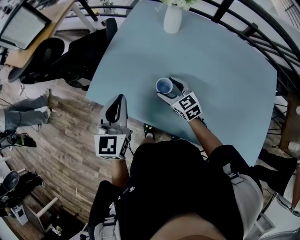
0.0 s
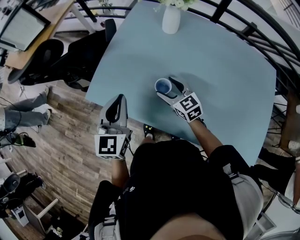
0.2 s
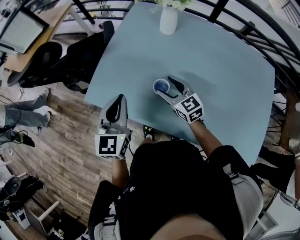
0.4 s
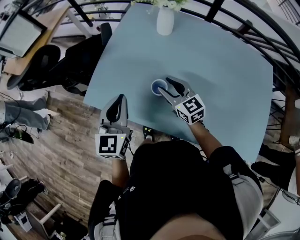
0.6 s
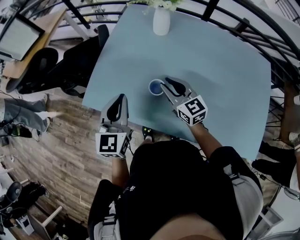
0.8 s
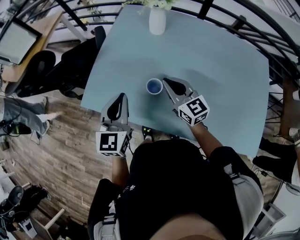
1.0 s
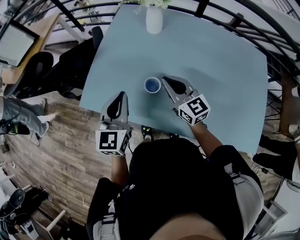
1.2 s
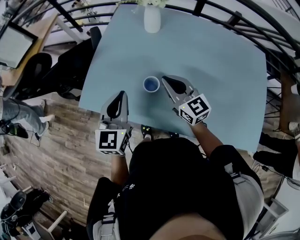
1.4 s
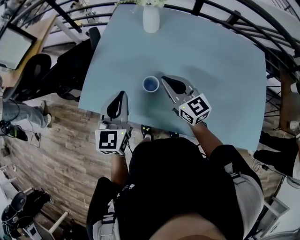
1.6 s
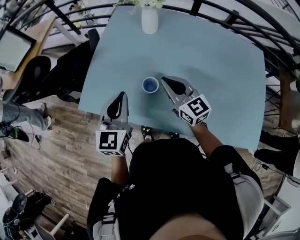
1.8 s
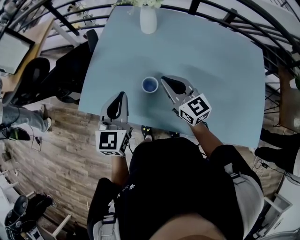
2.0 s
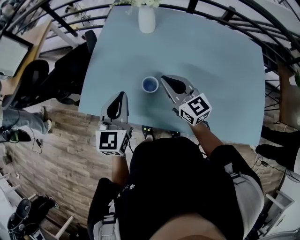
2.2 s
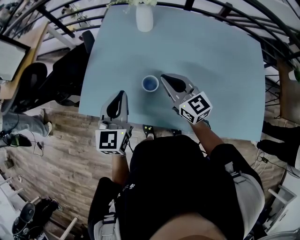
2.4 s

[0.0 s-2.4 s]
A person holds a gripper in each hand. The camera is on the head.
0.0 to 1.2 s: The right gripper travels upward by about 10 cm, changes its angle by some 20 degrees, and closes.
1.2 to 2.4 s: There are only small adjustments of the grippers.

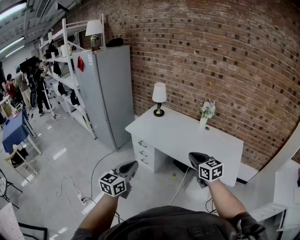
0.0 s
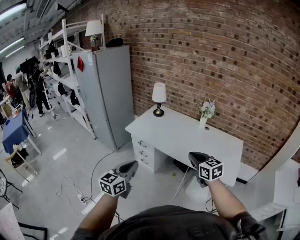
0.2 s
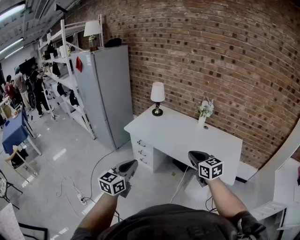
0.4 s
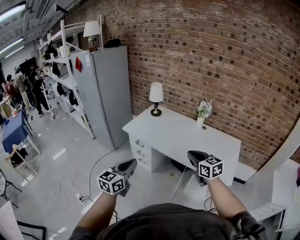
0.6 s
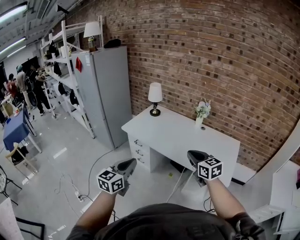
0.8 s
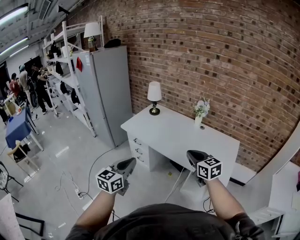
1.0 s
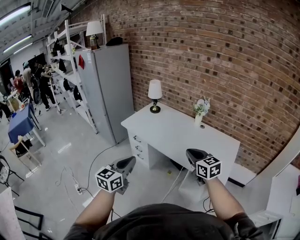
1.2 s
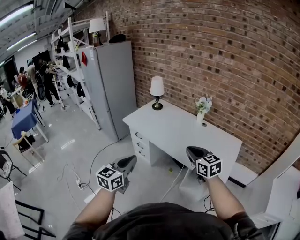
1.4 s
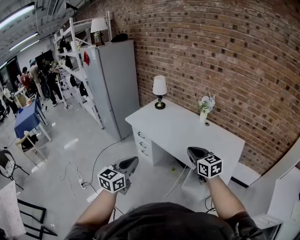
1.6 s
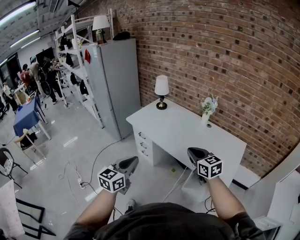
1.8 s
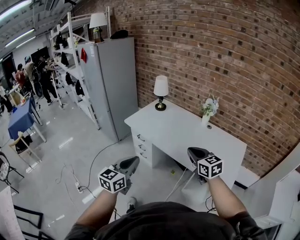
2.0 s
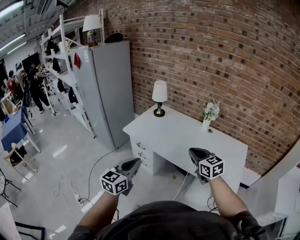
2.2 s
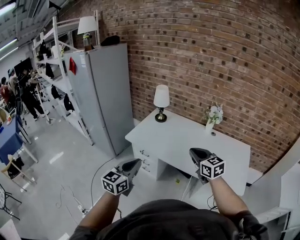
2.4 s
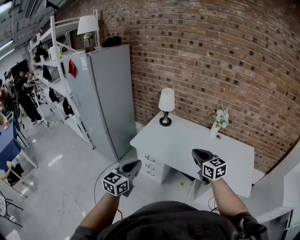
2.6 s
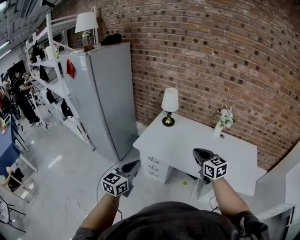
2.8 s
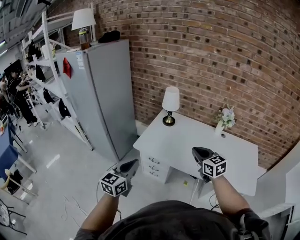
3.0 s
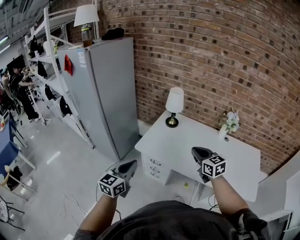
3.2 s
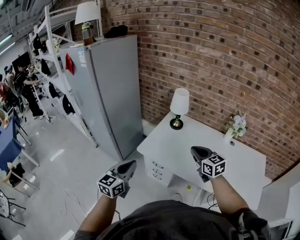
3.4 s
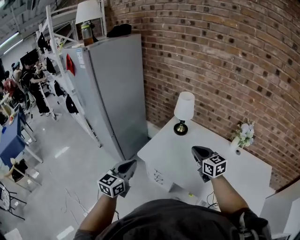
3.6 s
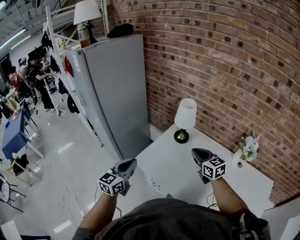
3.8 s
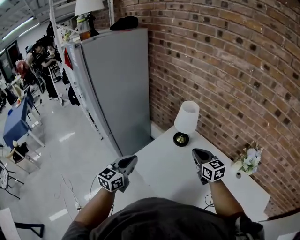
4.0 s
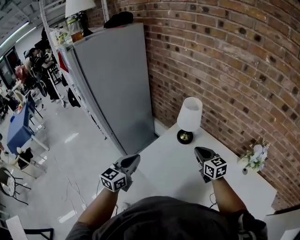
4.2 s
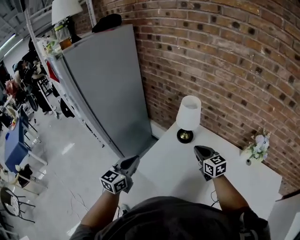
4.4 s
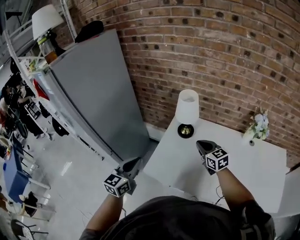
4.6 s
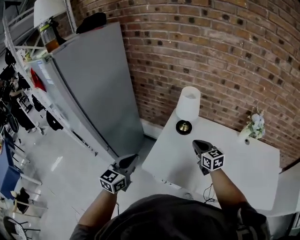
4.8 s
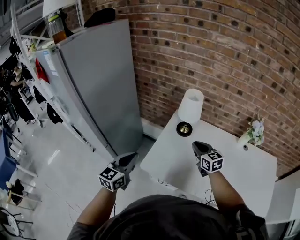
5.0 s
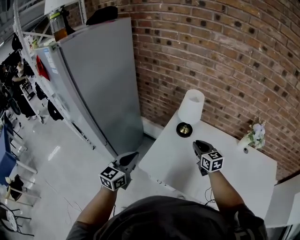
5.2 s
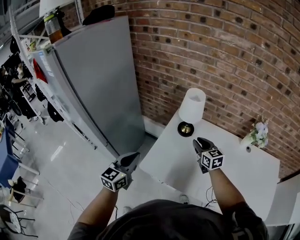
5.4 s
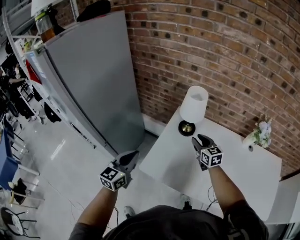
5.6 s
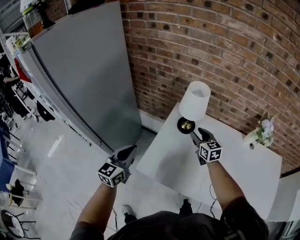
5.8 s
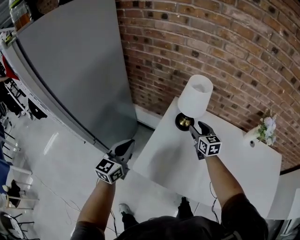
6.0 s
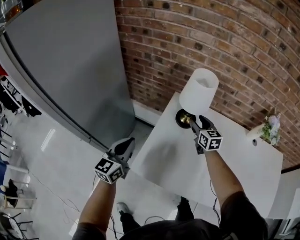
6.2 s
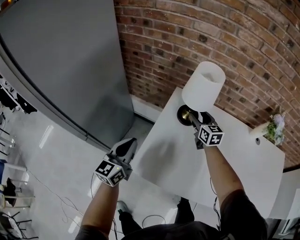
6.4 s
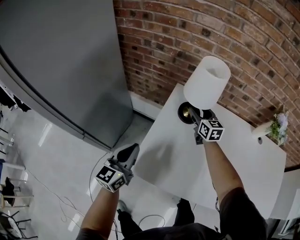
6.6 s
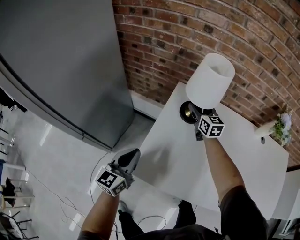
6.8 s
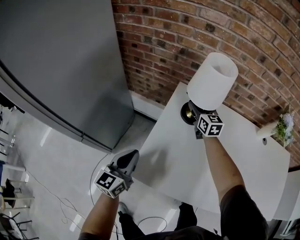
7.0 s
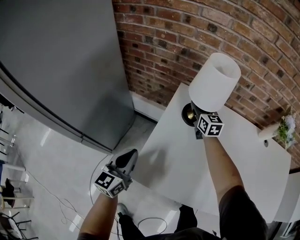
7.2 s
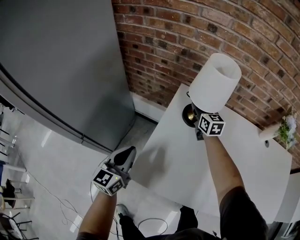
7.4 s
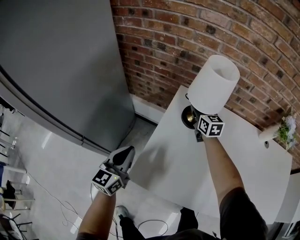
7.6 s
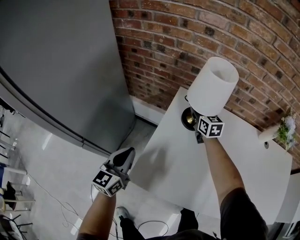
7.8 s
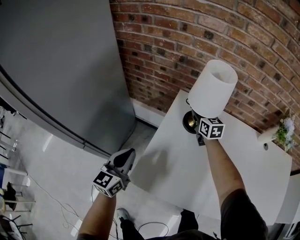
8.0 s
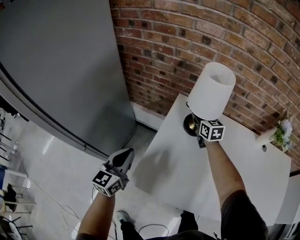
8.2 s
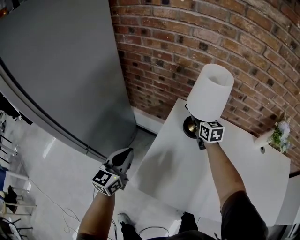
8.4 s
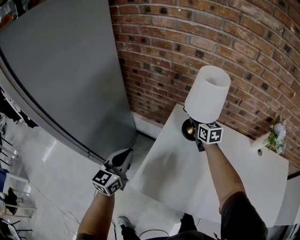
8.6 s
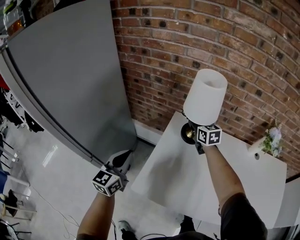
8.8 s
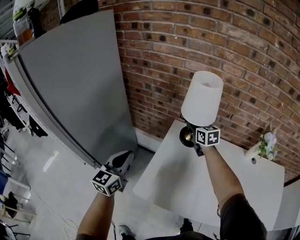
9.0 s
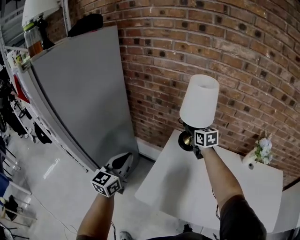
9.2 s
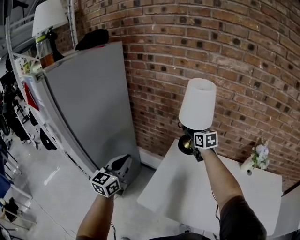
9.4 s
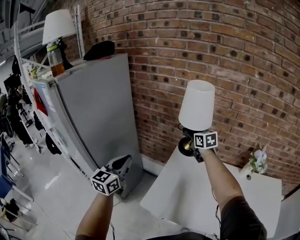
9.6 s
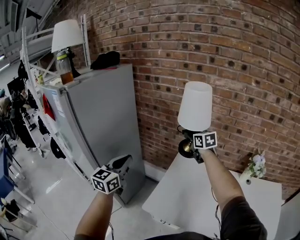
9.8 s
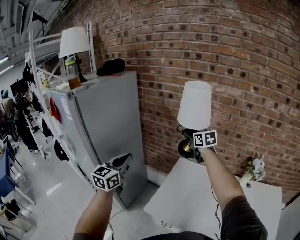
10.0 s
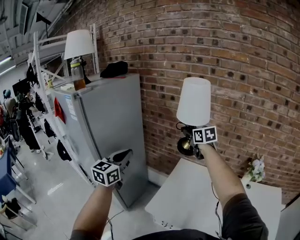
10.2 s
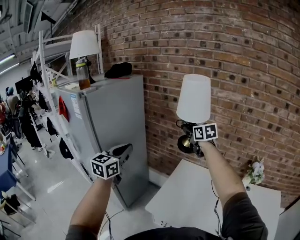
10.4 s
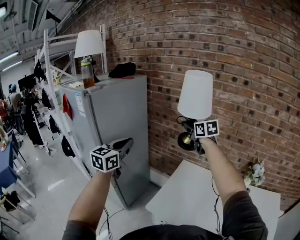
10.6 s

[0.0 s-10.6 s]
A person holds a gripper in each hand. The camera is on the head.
0.0 to 1.6 s: The grippers both shift to the right by roughly 15 cm.
1.6 to 3.0 s: The grippers both shift to the left and forward by roughly 40 cm.
3.0 to 4.6 s: Both grippers travel together forward, roughly 35 cm.
4.6 to 6.0 s: The grippers both shift forward and downward by about 15 cm. The right gripper opens its fingers.
6.0 to 7.6 s: The left gripper goes approximately 15 cm downward; the right gripper shifts some 15 cm forward and downward, and closes up.
7.6 to 9.0 s: The grippers both shift upward by about 15 cm.
9.0 to 10.6 s: The two grippers go roughly 30 cm upward.

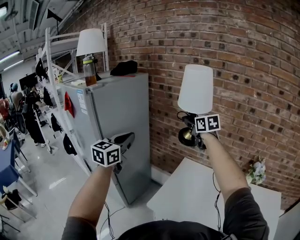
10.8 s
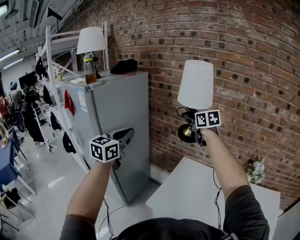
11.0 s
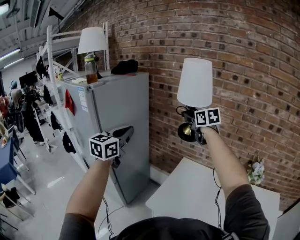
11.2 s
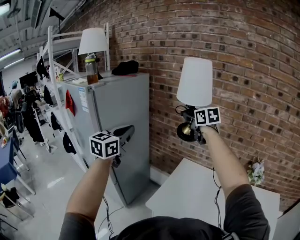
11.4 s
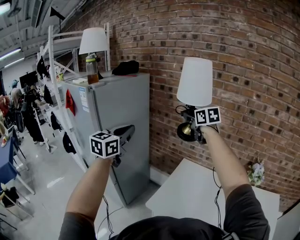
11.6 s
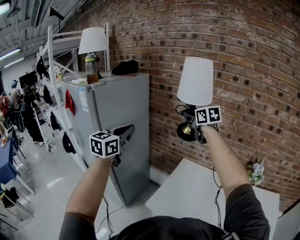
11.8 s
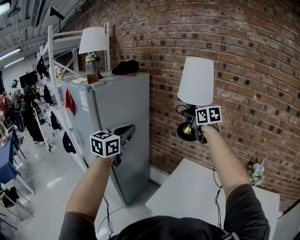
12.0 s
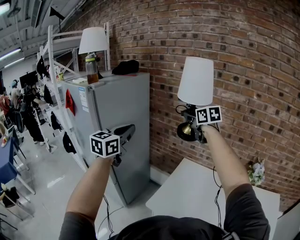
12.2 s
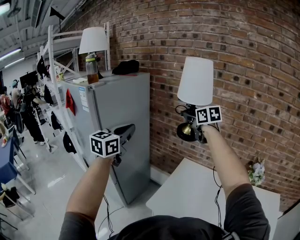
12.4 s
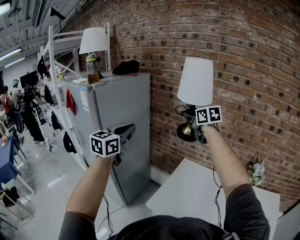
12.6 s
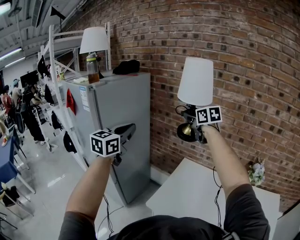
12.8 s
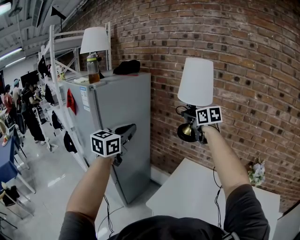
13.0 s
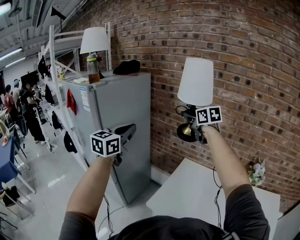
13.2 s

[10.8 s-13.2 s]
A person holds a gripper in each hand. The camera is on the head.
10.8 to 12.0 s: The grippers stay close to where they were, moving slightly.
12.0 to 13.2 s: Both grippers stay about where they are.

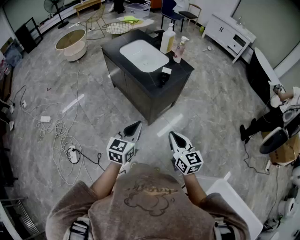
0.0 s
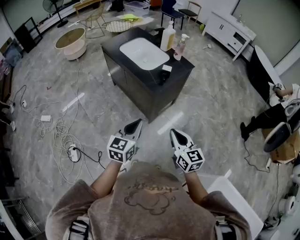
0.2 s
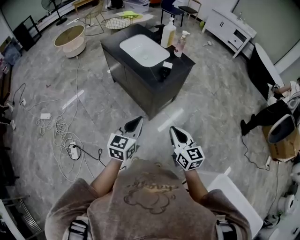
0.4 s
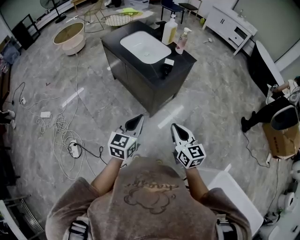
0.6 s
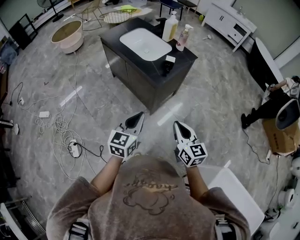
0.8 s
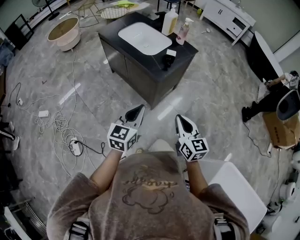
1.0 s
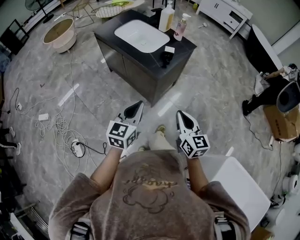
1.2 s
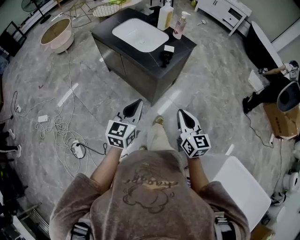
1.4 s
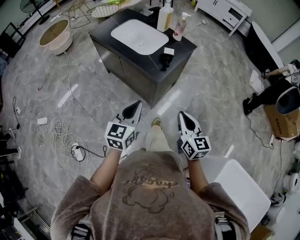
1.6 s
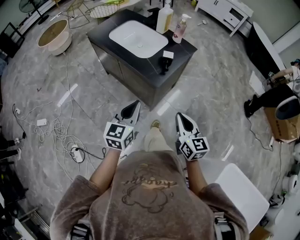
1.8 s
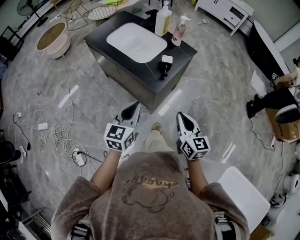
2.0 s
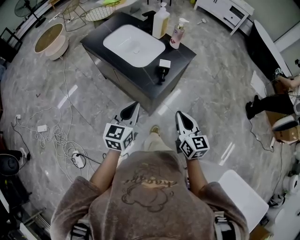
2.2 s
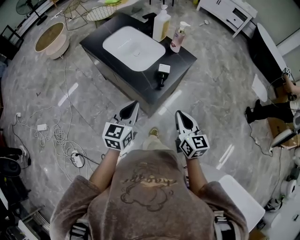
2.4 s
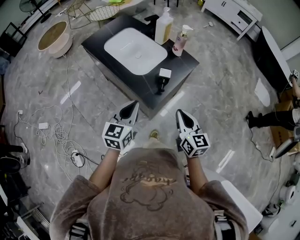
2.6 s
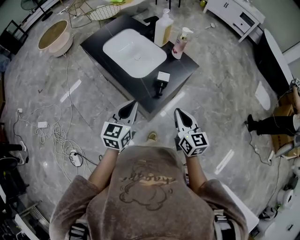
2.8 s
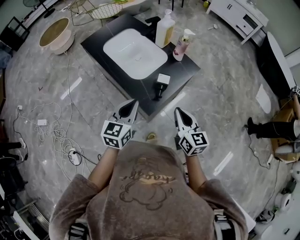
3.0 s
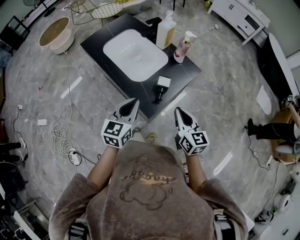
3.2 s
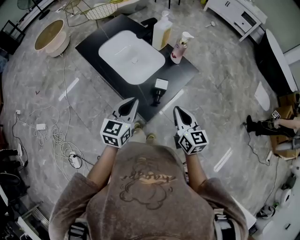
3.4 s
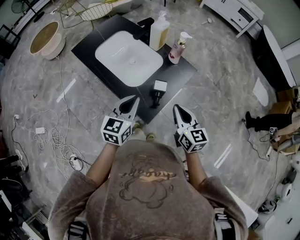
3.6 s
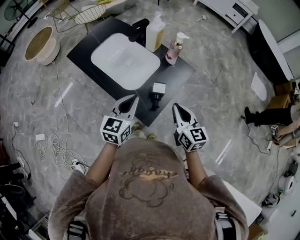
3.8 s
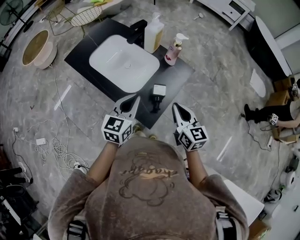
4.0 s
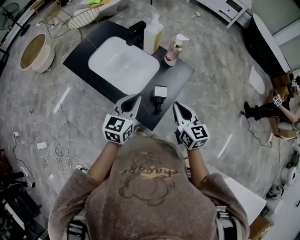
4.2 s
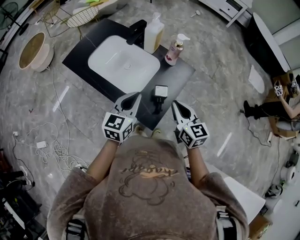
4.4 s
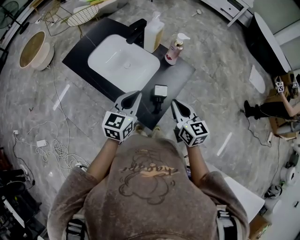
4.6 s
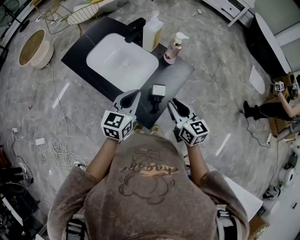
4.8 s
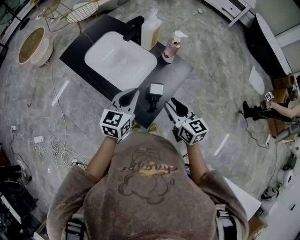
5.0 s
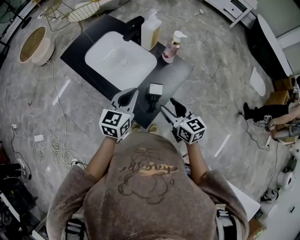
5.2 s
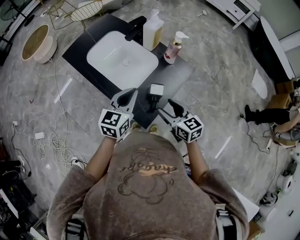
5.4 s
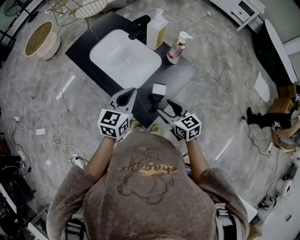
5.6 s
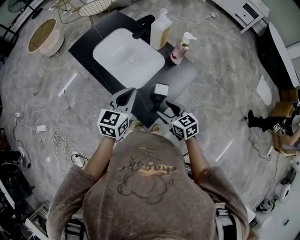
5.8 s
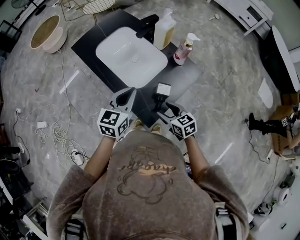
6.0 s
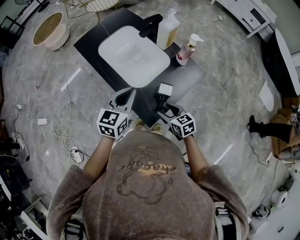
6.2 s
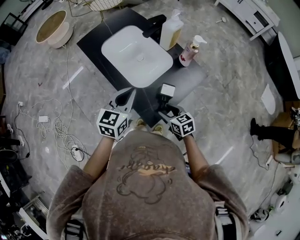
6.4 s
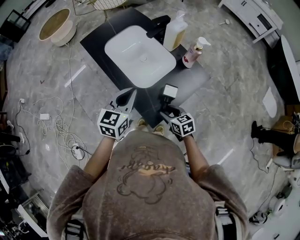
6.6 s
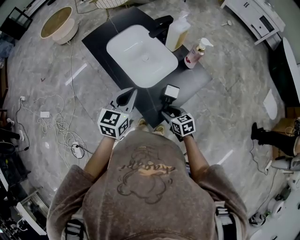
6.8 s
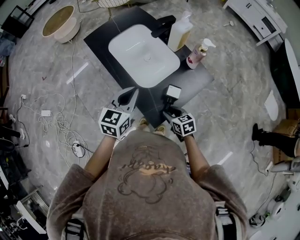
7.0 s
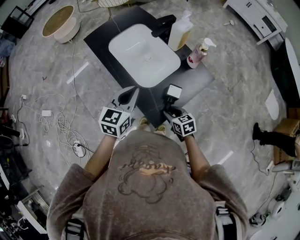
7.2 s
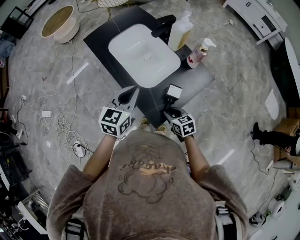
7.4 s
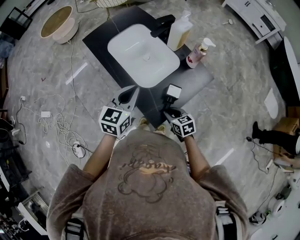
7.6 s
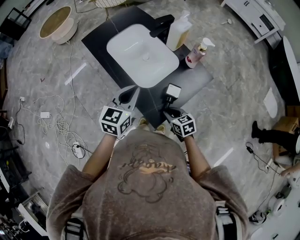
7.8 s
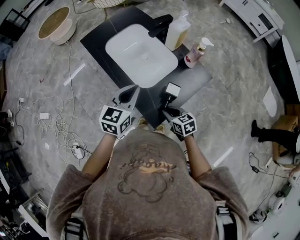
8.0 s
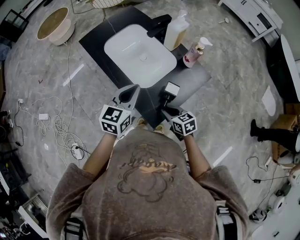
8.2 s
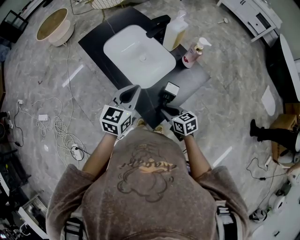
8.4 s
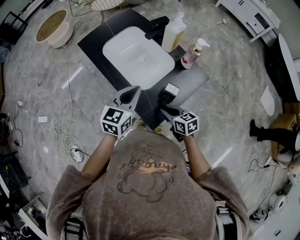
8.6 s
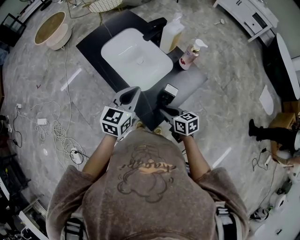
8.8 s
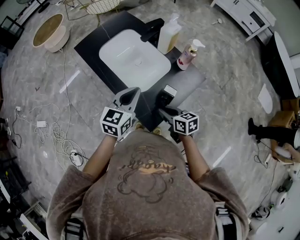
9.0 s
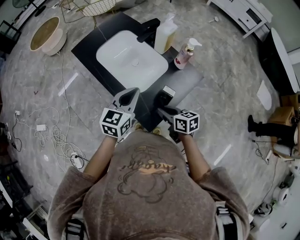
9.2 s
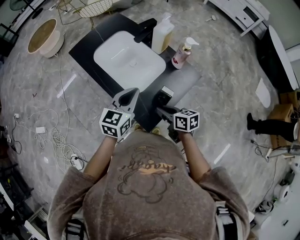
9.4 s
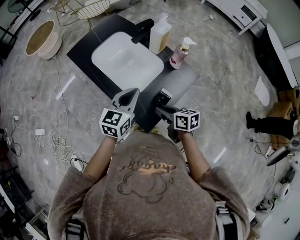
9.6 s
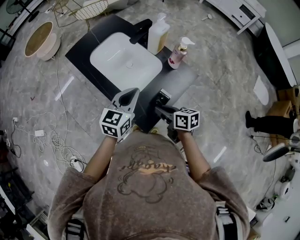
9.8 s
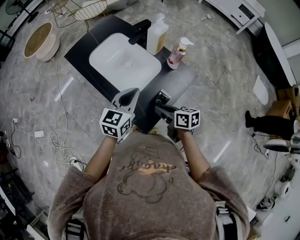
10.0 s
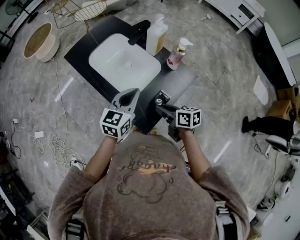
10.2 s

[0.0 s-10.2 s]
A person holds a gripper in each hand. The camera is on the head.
0.0 to 1.4 s: The left gripper shifts approximately 10 cm forward and to the left. The right gripper changes place by some 5 cm.
1.4 to 3.0 s: The two grippers go roughly 25 cm forward.
3.0 to 4.4 s: The grippers both shift forward by about 15 cm.
4.4 to 5.8 s: The right gripper goes roughly 10 cm downward, turns by roughly 30 degrees, and opens up.
5.8 to 7.2 s: The right gripper heads downward, covering about 10 cm, and closes up.
7.2 to 8.8 s: The right gripper shifts some 5 cm upward.
8.8 to 10.2 s: The right gripper shifts by roughly 5 cm.
